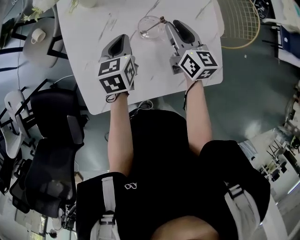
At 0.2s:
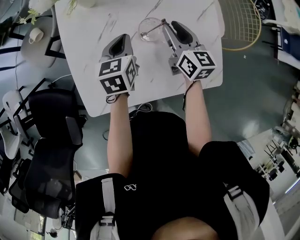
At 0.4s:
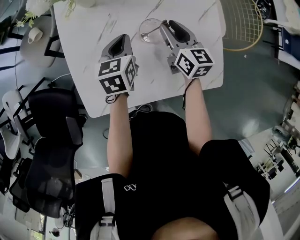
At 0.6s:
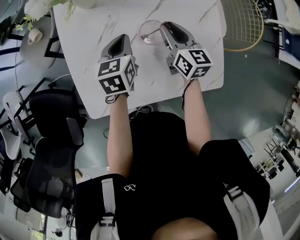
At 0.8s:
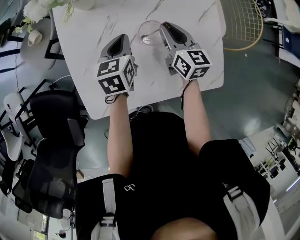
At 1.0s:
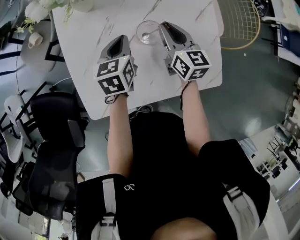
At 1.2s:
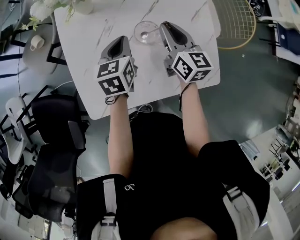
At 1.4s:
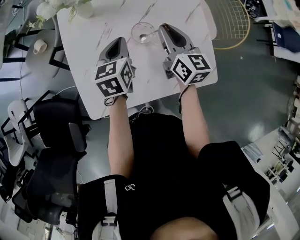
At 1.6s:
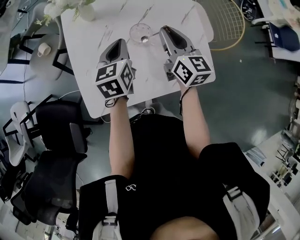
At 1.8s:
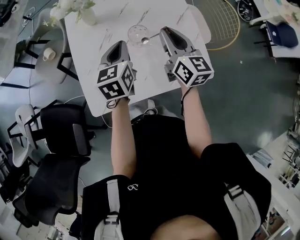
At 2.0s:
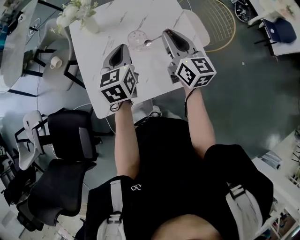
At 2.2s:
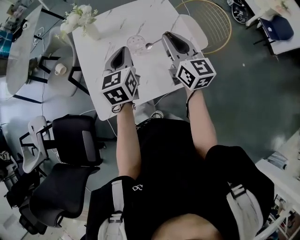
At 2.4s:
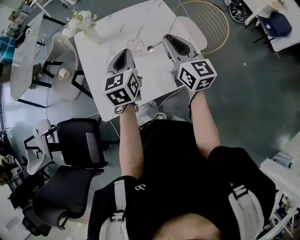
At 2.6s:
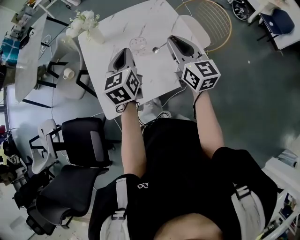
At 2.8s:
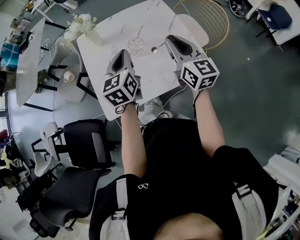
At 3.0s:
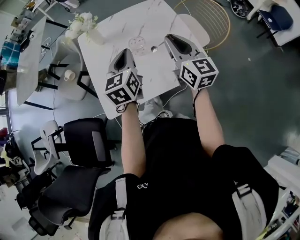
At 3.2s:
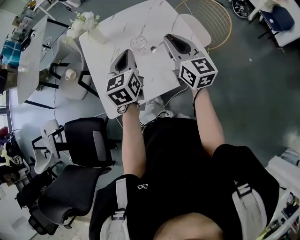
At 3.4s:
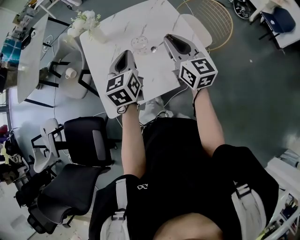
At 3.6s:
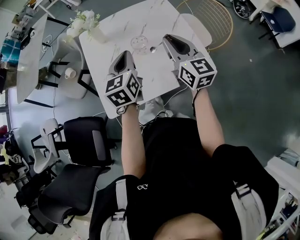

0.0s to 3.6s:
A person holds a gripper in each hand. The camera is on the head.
0.0s to 1.8s: Both grippers move upward, some 10 cm.
1.8s to 3.6s: The left gripper travels upward by roughly 5 cm; the right gripper shifts some 5 cm backward.

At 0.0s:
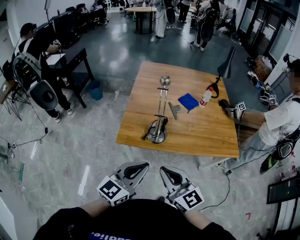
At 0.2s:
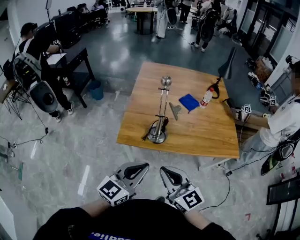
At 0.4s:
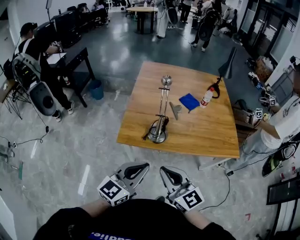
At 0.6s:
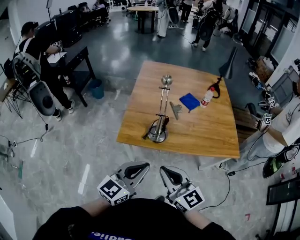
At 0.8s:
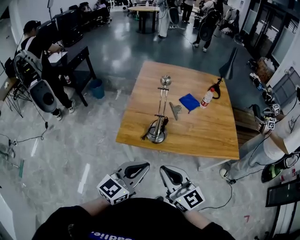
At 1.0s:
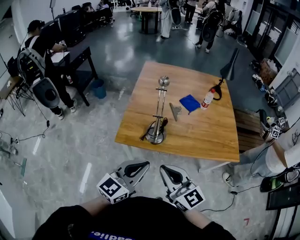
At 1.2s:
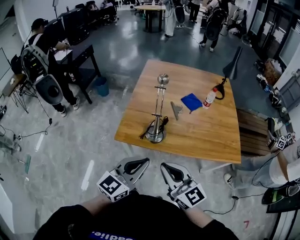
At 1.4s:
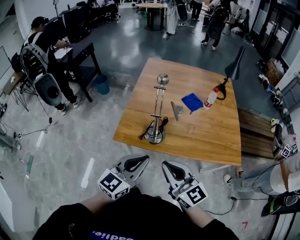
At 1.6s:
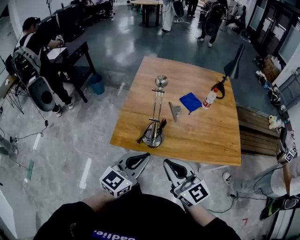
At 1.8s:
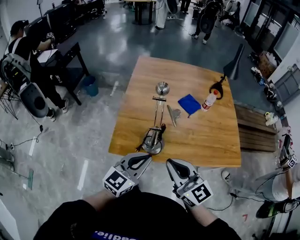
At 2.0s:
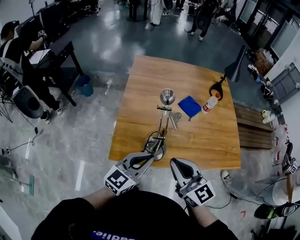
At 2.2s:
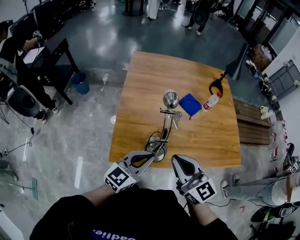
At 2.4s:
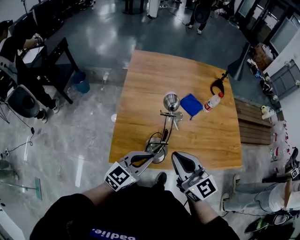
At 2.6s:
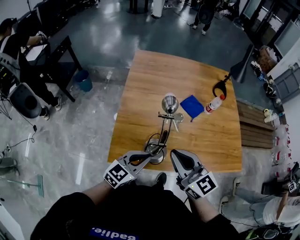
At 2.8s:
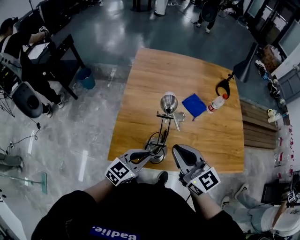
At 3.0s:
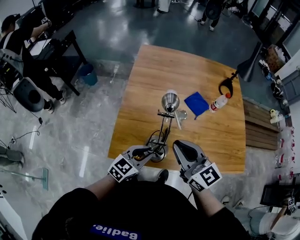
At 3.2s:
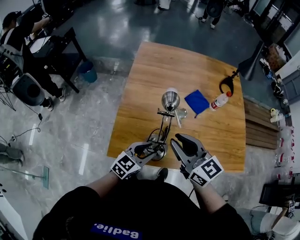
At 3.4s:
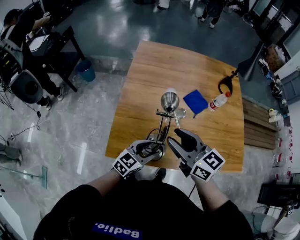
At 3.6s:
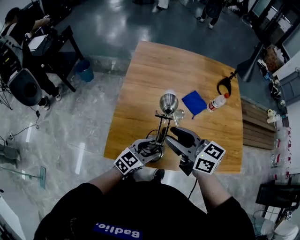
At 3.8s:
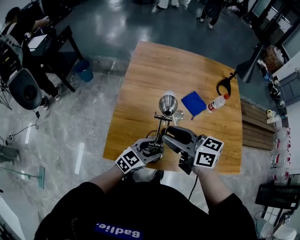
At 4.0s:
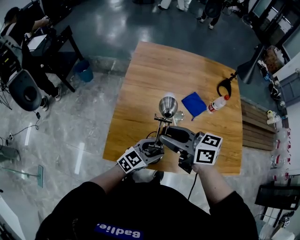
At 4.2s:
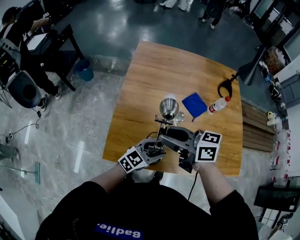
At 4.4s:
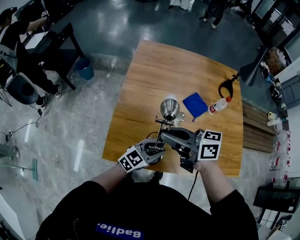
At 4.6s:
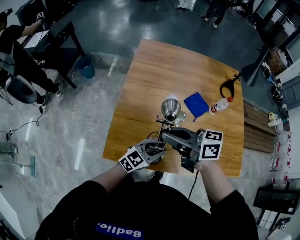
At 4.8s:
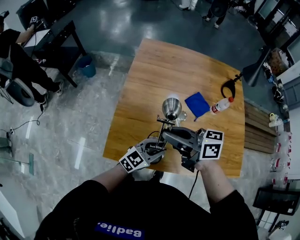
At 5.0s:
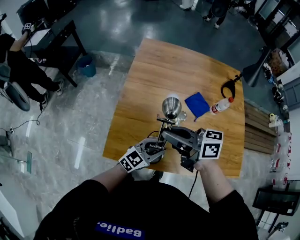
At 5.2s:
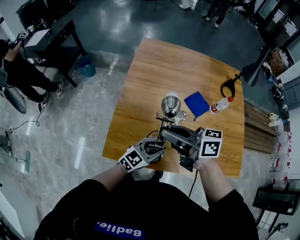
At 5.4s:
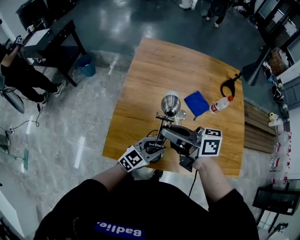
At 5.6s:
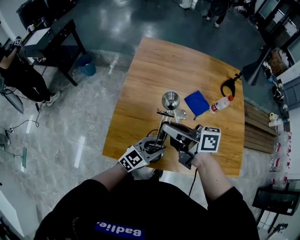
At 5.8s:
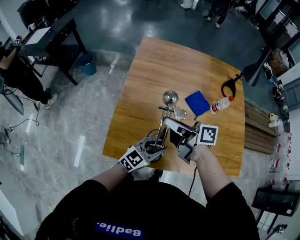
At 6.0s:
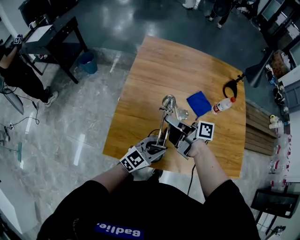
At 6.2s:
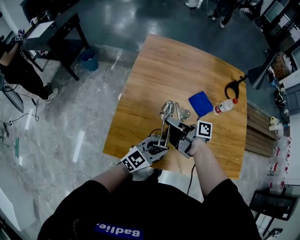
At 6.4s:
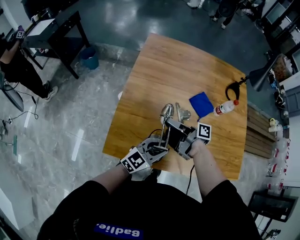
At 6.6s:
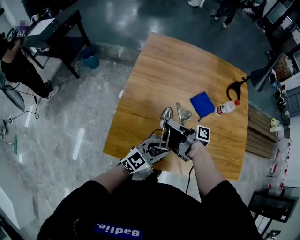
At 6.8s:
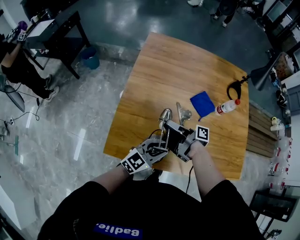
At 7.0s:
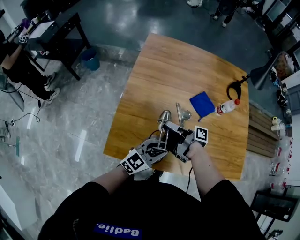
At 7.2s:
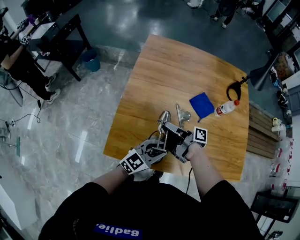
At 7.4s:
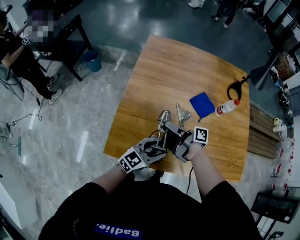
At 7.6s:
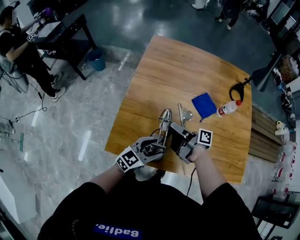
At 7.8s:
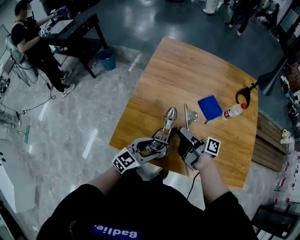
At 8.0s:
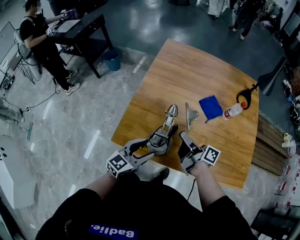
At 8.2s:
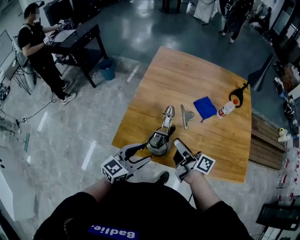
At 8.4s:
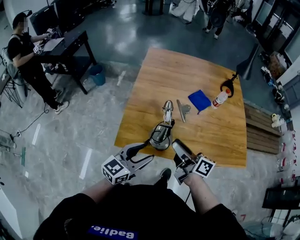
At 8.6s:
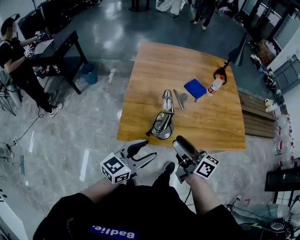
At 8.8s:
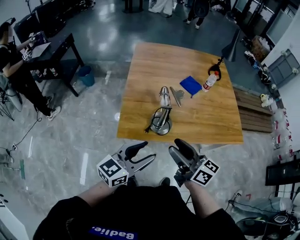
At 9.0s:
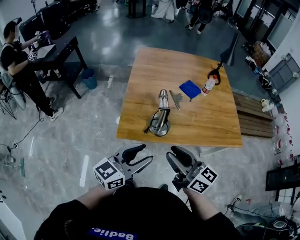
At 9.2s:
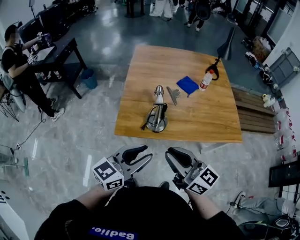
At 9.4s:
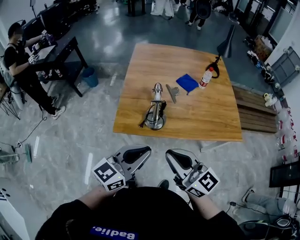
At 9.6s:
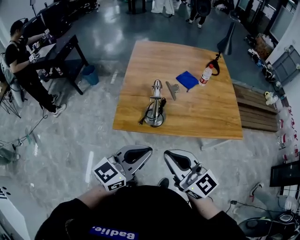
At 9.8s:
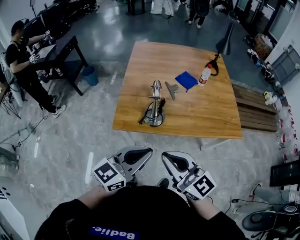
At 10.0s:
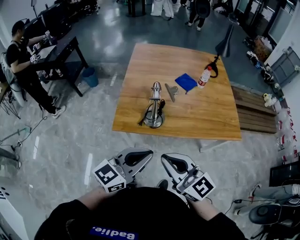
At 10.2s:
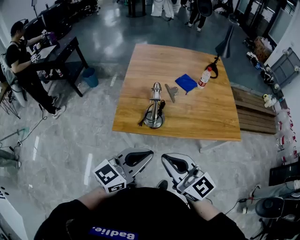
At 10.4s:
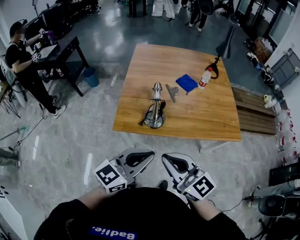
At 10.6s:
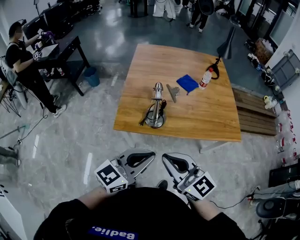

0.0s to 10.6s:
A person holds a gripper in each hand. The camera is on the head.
0.0s to 1.6s: The right gripper travels forward and to the right by approximately 10 cm. Meanwhile the left gripper heads forward, covering roughly 10 cm.
1.6s to 3.0s: The left gripper goes some 20 cm forward and downward, and swivels approximately 20 degrees, while the right gripper shifts roughly 20 cm forward.
3.0s to 4.6s: The left gripper changes place by about 10 cm, and opens and closes again; the right gripper shifts by approximately 10 cm, changes its angle by approximately 50 degrees, and opens and closes again.
4.6s to 6.0s: The right gripper moves downward, roughly 10 cm, and swivels some 40 degrees.
6.0s to 7.6s: The right gripper shifts approximately 5 cm downward, and opens up. Meanwhile the left gripper opens.
7.6s to 9.0s: The right gripper goes about 40 cm backward and upward, rotates around the line of its fingers by some 60 degrees, counterclockwise from behind, and closes its fingers. The left gripper moves backward, upward and to the left, some 35 cm.
9.0s to 10.6s: The right gripper shifts approximately 5 cm backward, swivels about 20 degrees, and closes up. Meanwhile the left gripper is displaced to the right and backward by roughly 10 cm, and closes its fingers.

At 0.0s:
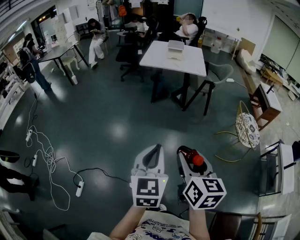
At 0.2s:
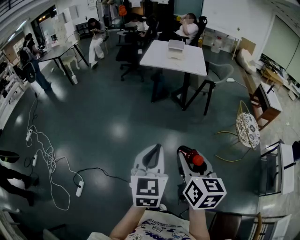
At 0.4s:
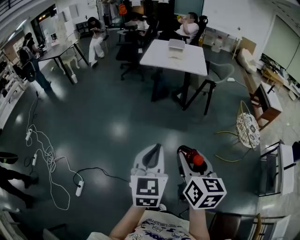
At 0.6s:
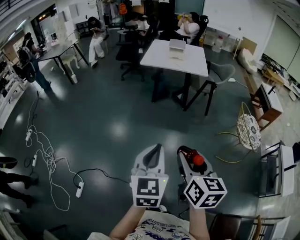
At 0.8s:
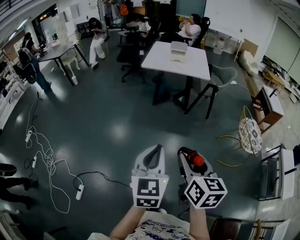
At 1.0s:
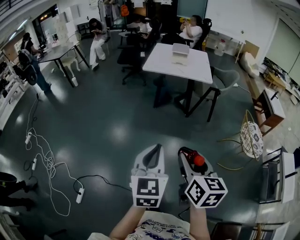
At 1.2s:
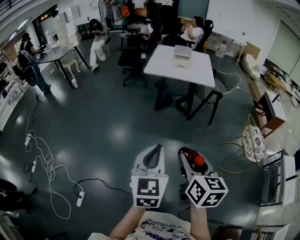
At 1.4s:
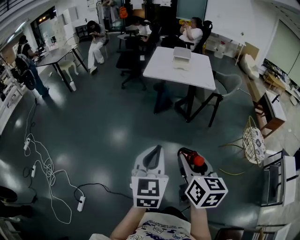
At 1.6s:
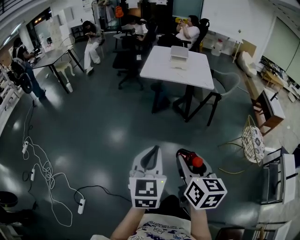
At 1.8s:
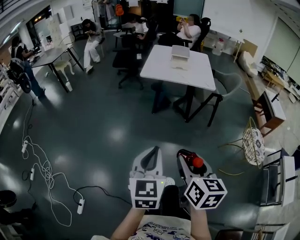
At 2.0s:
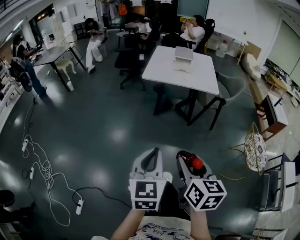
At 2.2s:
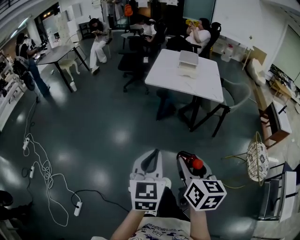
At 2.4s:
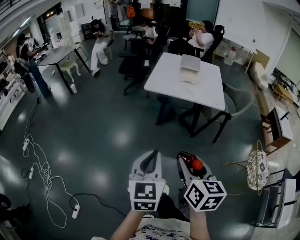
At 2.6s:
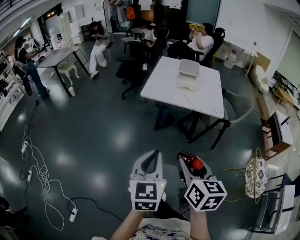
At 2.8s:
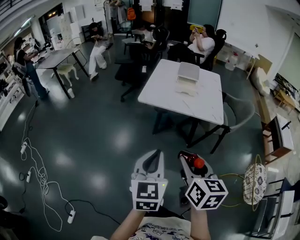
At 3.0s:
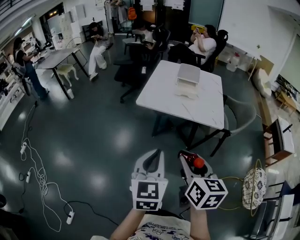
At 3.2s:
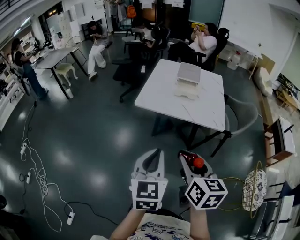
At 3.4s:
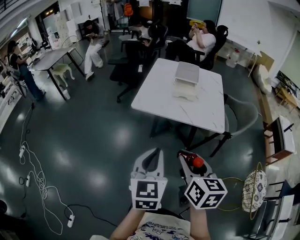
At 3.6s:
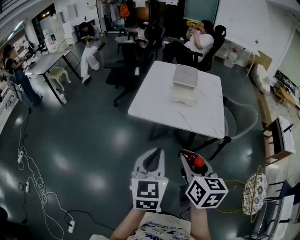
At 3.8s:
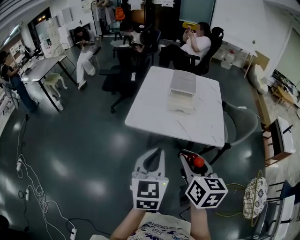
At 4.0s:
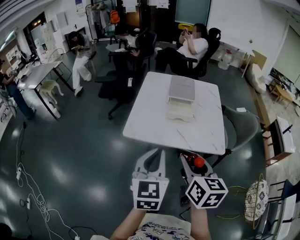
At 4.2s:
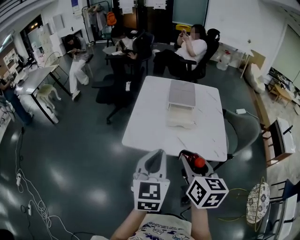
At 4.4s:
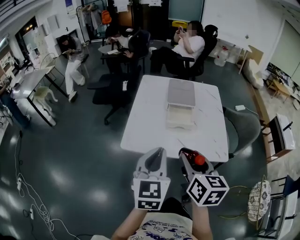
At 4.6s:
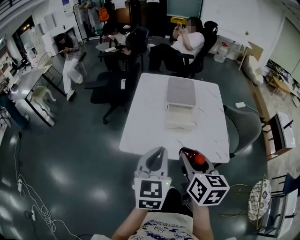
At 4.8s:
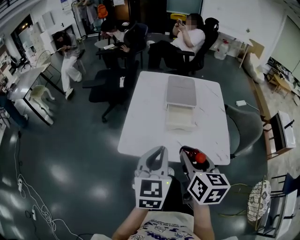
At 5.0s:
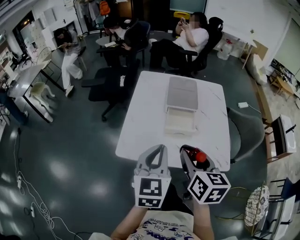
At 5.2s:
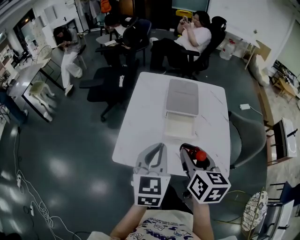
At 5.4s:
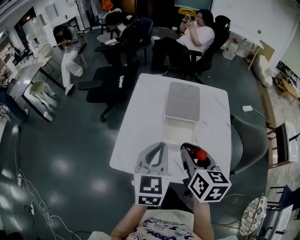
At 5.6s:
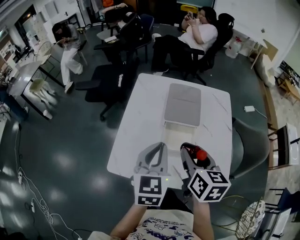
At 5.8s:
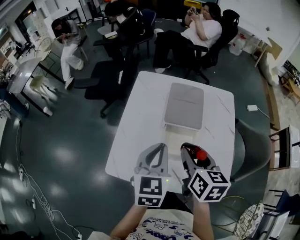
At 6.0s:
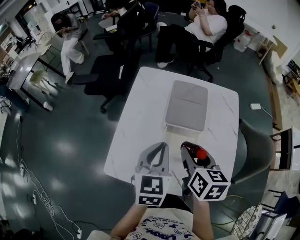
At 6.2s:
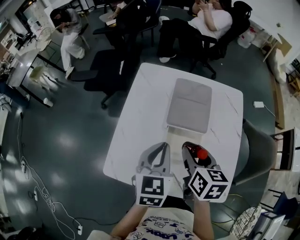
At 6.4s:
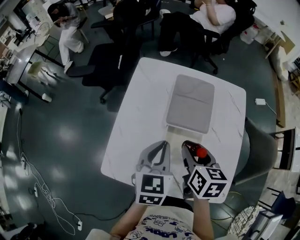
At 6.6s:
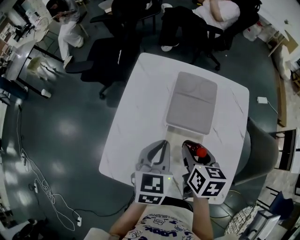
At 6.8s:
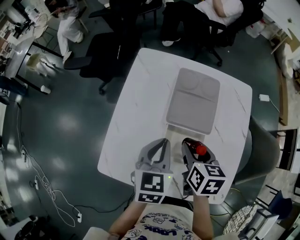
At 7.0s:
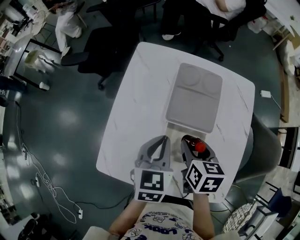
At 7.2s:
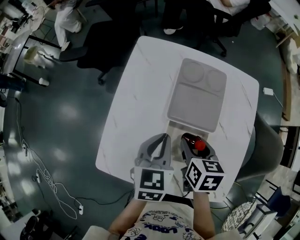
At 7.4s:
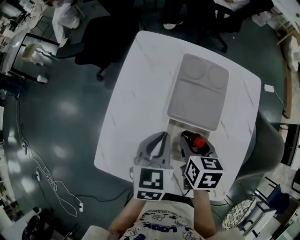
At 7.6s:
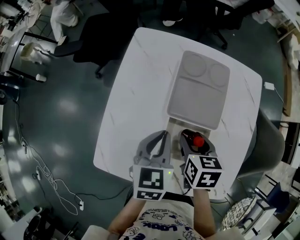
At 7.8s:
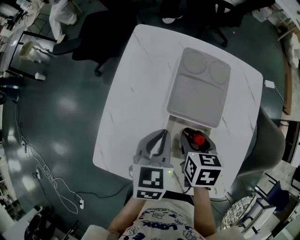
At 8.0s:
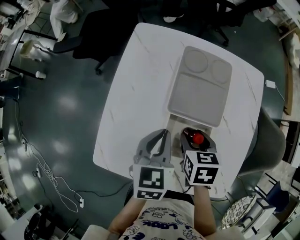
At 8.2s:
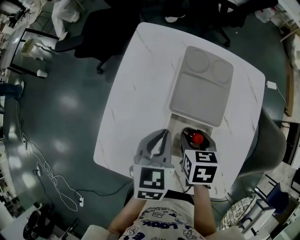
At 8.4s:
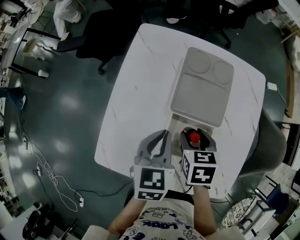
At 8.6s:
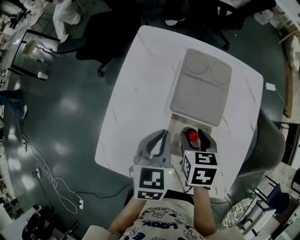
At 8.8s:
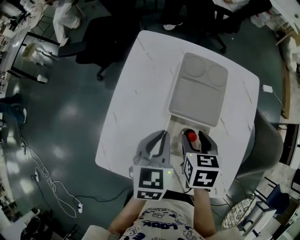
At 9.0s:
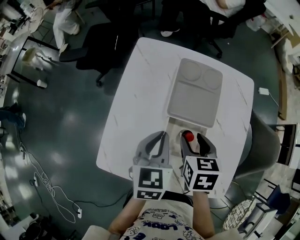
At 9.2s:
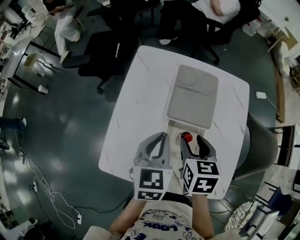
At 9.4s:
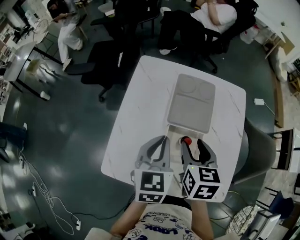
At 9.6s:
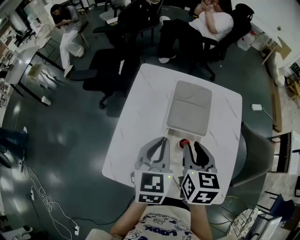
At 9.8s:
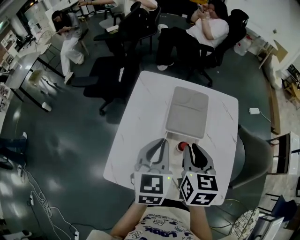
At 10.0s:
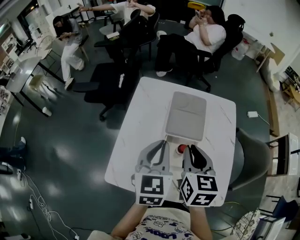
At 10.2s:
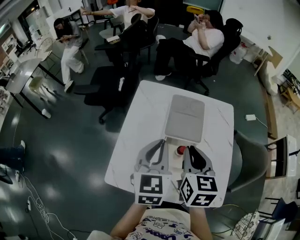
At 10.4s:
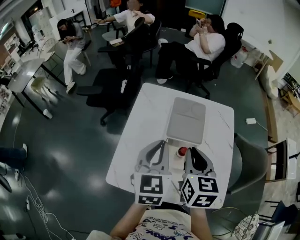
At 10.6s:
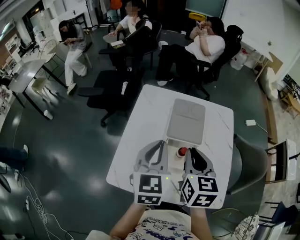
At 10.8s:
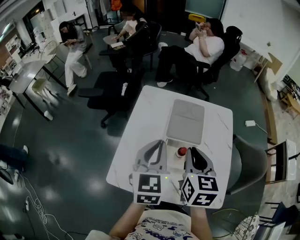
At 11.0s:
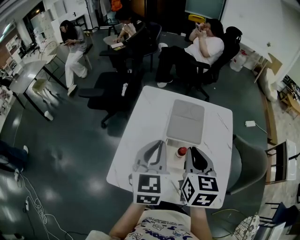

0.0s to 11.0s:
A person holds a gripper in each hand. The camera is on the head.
0.0s to 1.6s: The two grippers go about 20 cm forward.
1.6s to 3.2s: The two grippers go approximately 35 cm forward.
3.2s to 4.8s: Both grippers travel together forward, about 35 cm.
4.8s to 6.2s: The two grippers go some 25 cm forward.
6.2s to 7.8s: The two grippers go about 10 cm downward. The right gripper swivels some 20 degrees.
7.8s to 9.4s: The grippers both shift upward by some 10 cm.
9.4s to 11.0s: The grippers both shift upward by approximately 10 cm. The right gripper closes its fingers.
